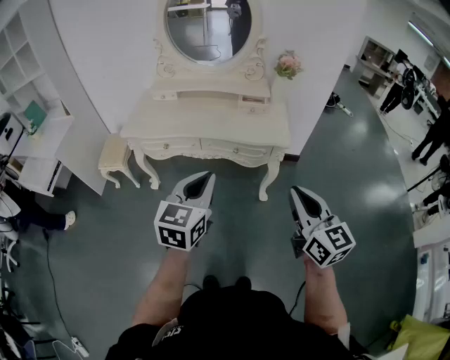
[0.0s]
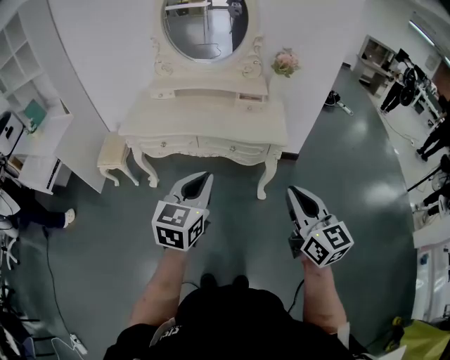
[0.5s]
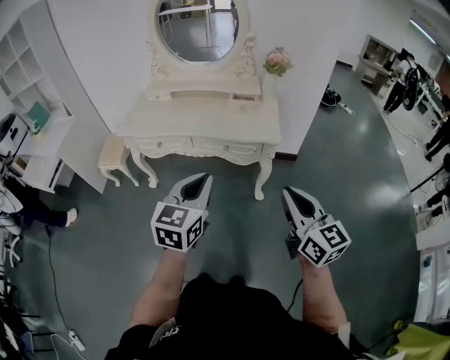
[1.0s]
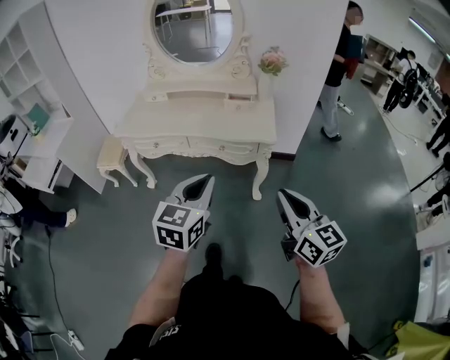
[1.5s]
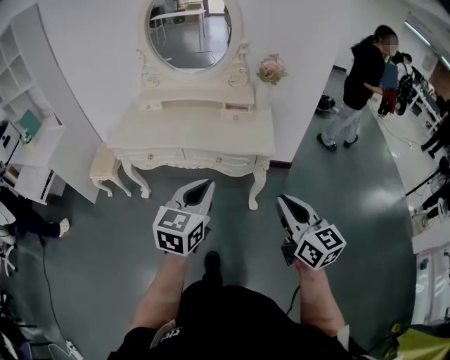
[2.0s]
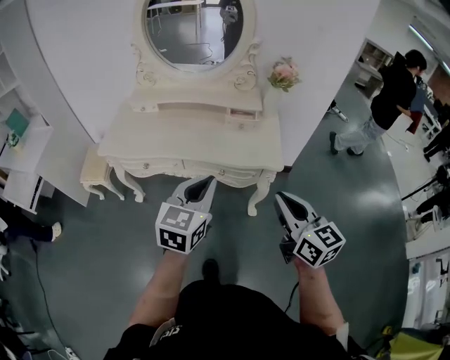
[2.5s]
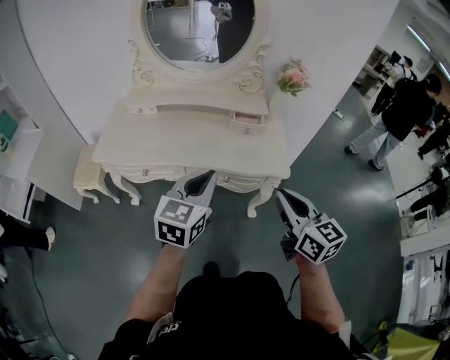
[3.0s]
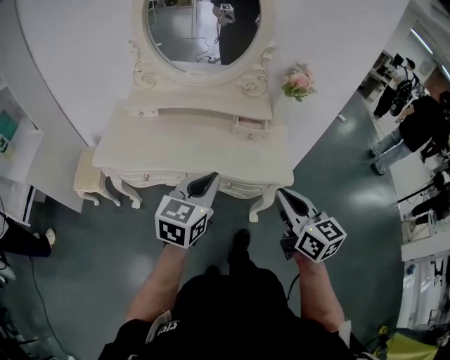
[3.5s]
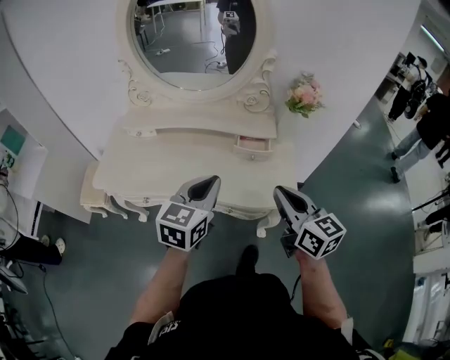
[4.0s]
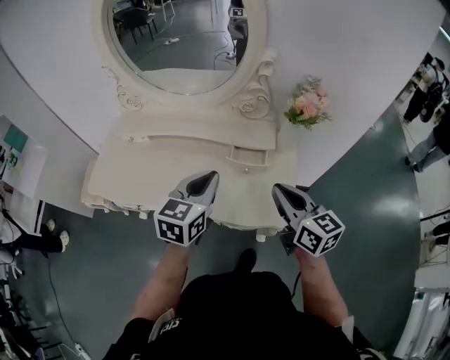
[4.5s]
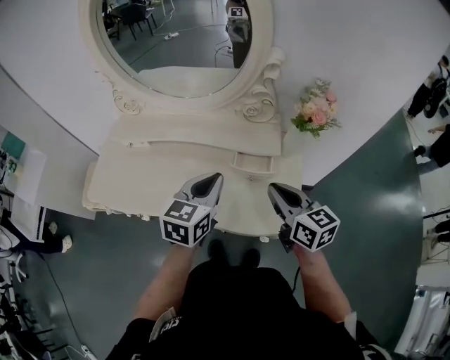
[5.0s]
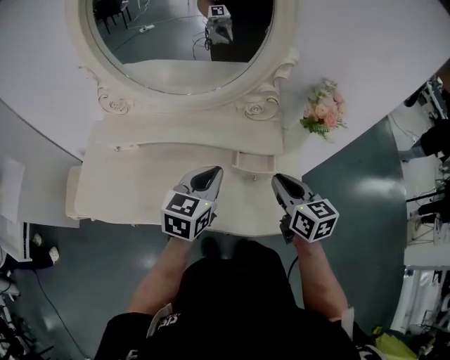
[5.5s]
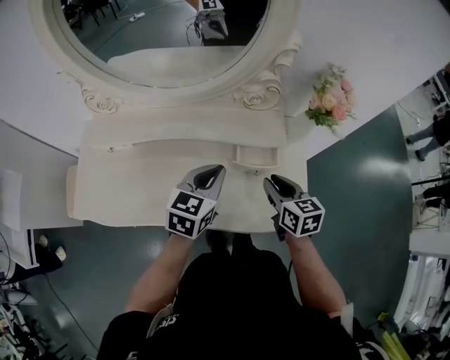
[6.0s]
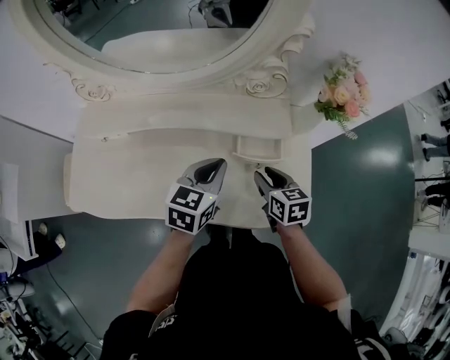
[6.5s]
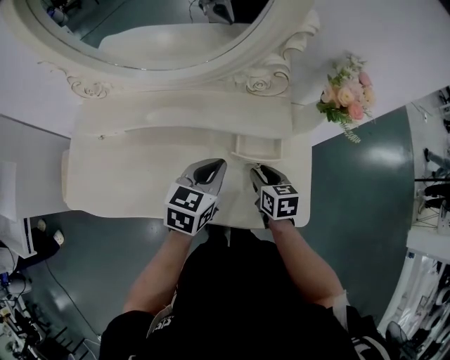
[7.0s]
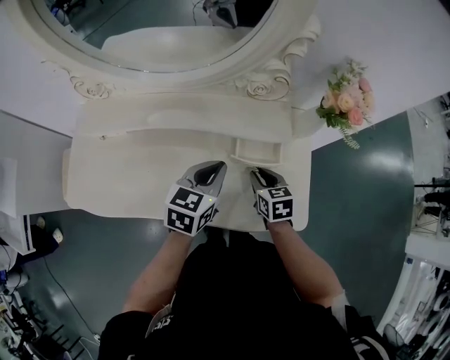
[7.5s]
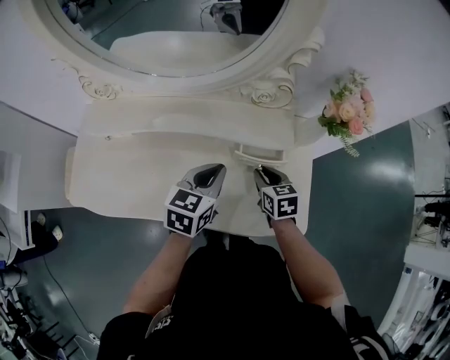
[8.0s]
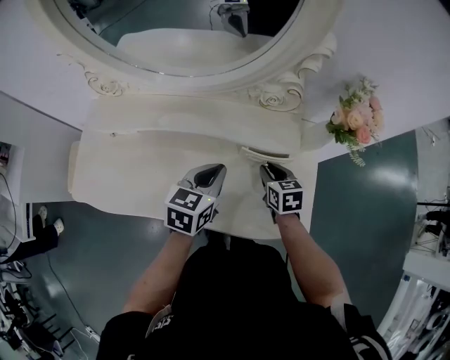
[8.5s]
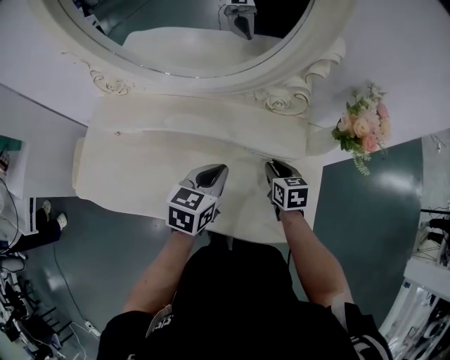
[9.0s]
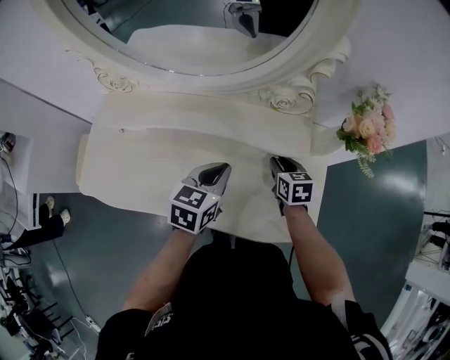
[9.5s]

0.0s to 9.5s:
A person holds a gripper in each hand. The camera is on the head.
0.0s to 2.0s: The grippers both shift to the right by approximately 10 cm.
2.0s to 4.0s: The grippers both shift forward by roughly 35 cm.
4.0s to 5.5s: Both grippers move forward, roughly 20 cm.
5.5s to 7.5s: The left gripper travels downward by roughly 10 cm; the right gripper goes about 20 cm downward, and changes its angle by some 20 degrees.
7.5s to 9.5s: The right gripper shifts roughly 10 cm forward.

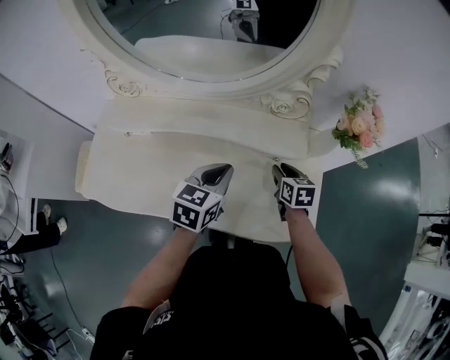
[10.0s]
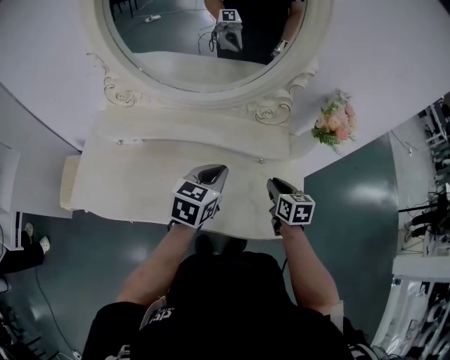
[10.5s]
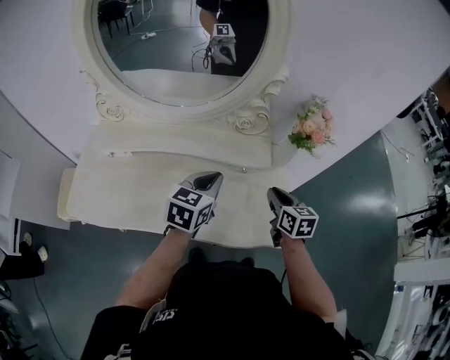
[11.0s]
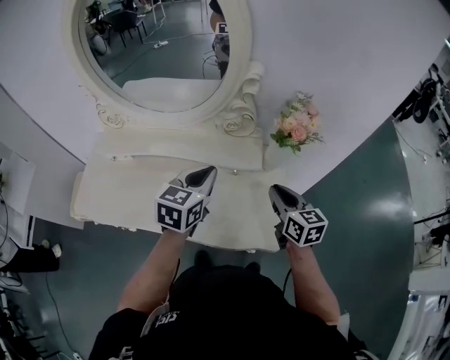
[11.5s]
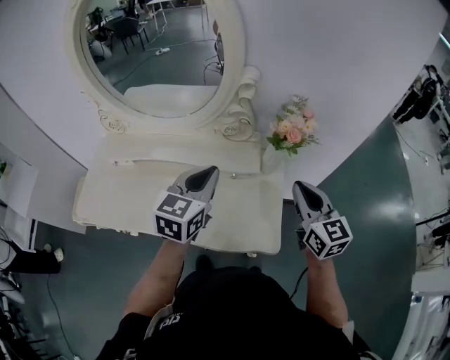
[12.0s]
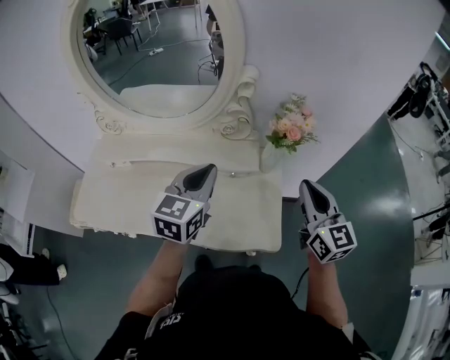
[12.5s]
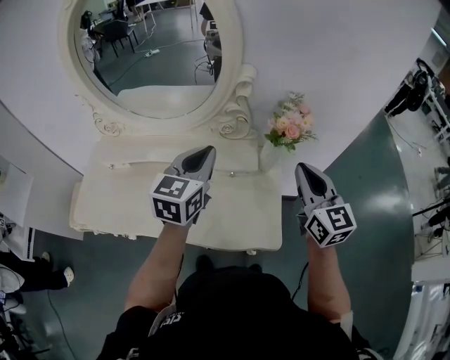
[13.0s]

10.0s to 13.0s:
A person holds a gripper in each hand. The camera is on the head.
10.0s to 11.5s: The right gripper travels upward, to the right and backward by about 20 cm, and changes its angle by some 20 degrees. Meanwhile the left gripper is displaced upward and to the right by approximately 15 cm.
11.5s to 13.0s: The right gripper heads upward, covering approximately 15 cm, and swivels about 20 degrees. Meanwhile the left gripper goes roughly 10 cm upward.

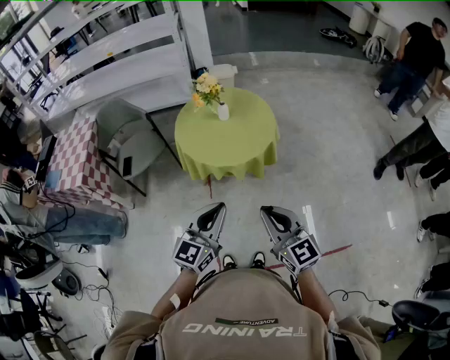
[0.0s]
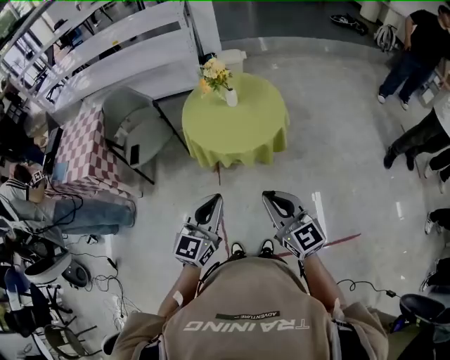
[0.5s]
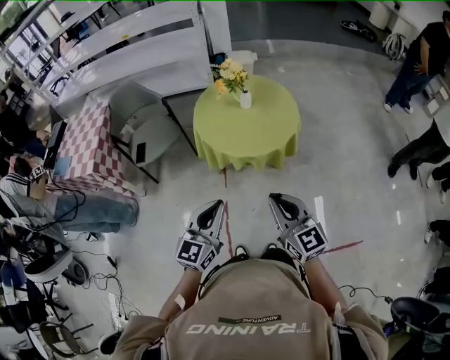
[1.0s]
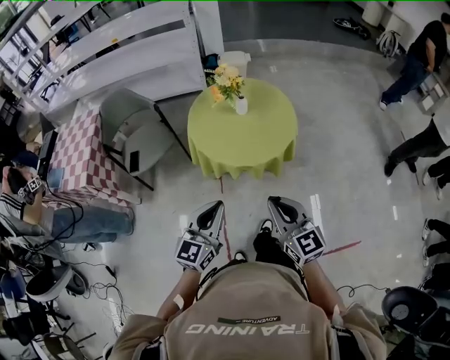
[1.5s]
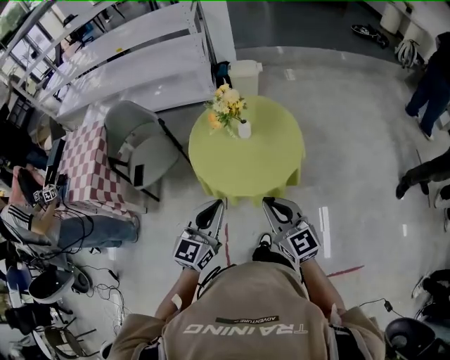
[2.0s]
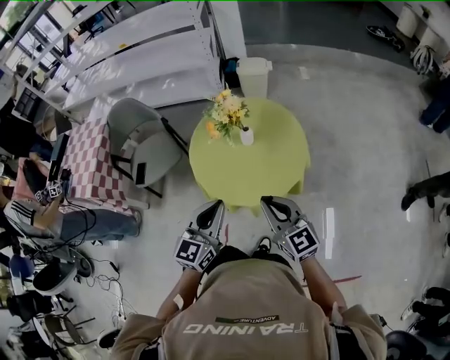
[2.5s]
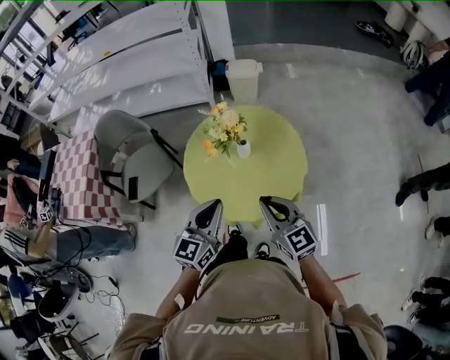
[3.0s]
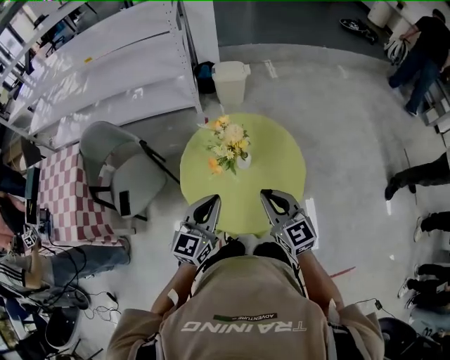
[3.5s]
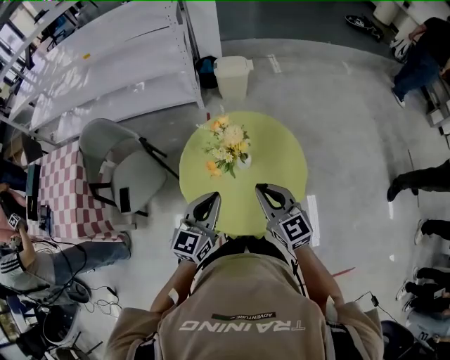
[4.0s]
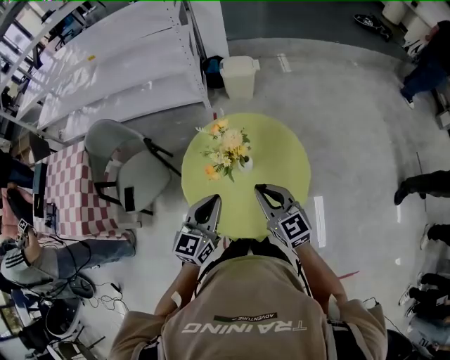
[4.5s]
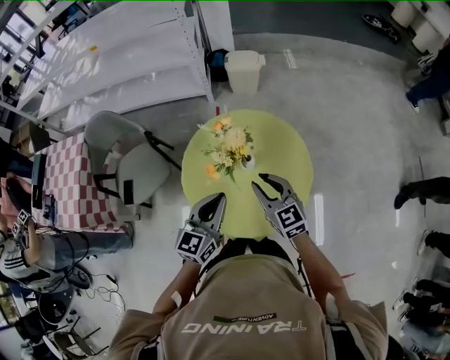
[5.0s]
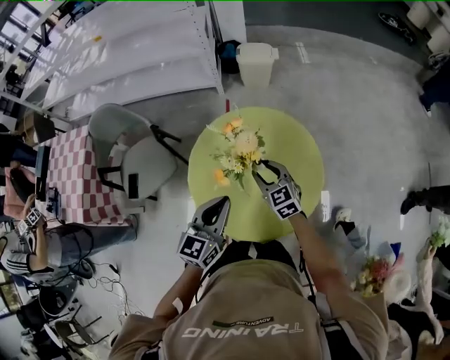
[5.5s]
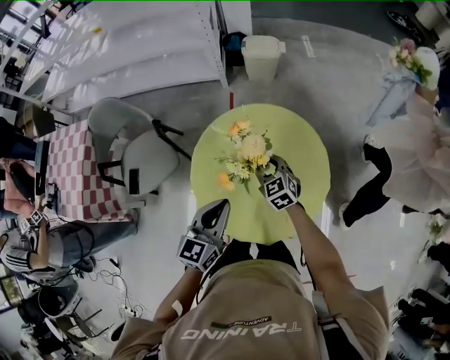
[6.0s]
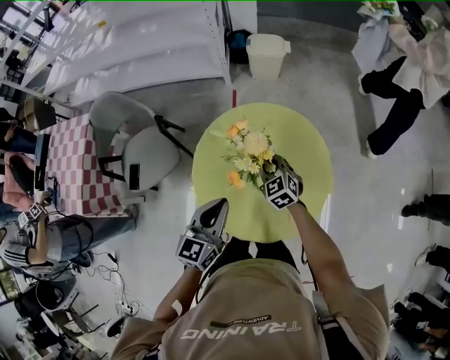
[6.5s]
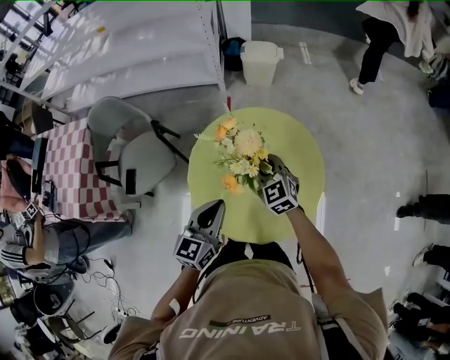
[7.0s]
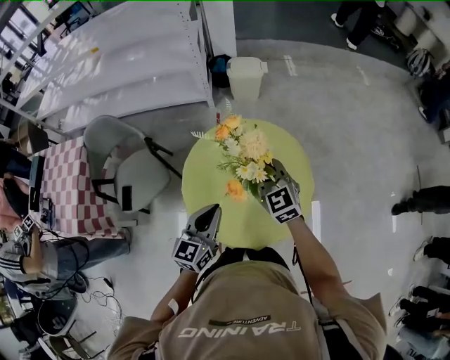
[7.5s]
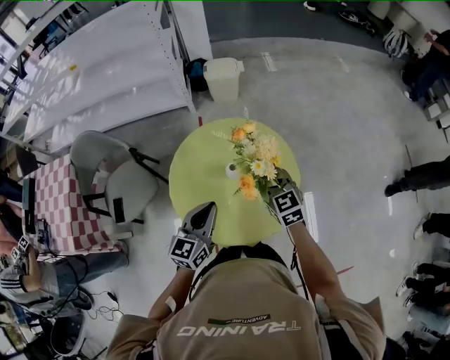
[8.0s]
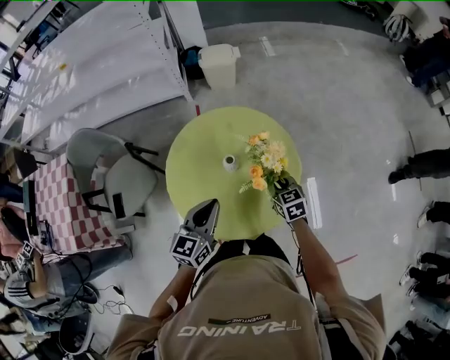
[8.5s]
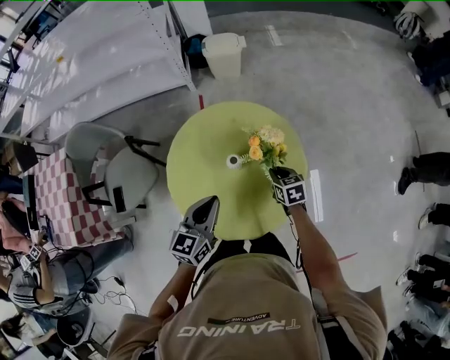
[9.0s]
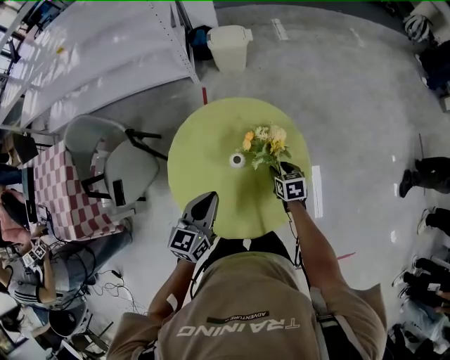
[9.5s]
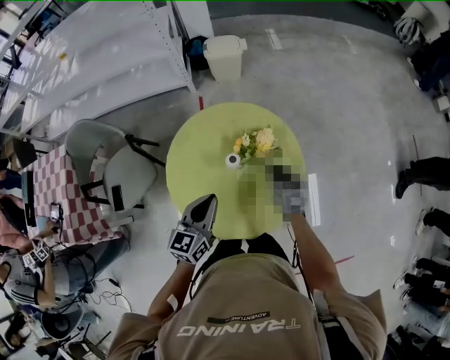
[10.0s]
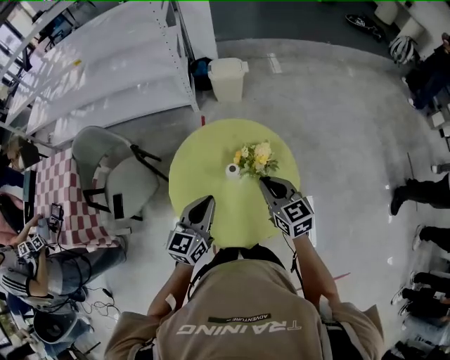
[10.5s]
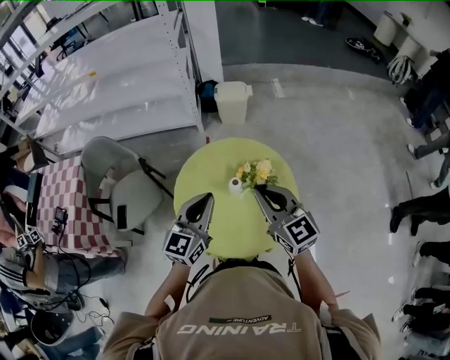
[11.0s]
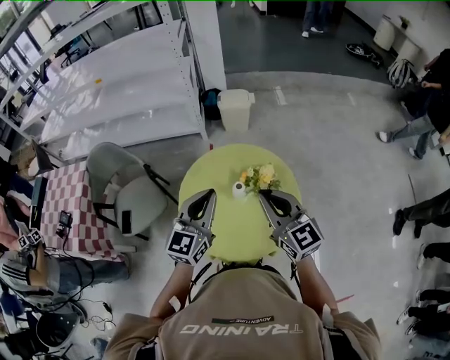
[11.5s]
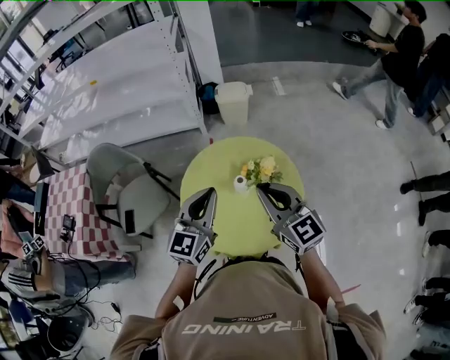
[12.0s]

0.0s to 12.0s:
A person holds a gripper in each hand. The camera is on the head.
0.0s to 2.0s: The two grippers go approximately 25 cm forward.
2.0s to 4.0s: Both grippers move forward, approximately 30 cm.
4.0s to 6.0s: The right gripper is displaced downward and forward by some 25 cm, changes its angle by approximately 30 degrees, and opens its fingers. Meanwhile the left gripper is displaced forward by approximately 5 cm.
6.0s to 8.0s: The right gripper moves upward, to the right and backward, about 15 cm, and closes up.
8.0s to 10.0s: The right gripper heads downward, covering approximately 15 cm, rotates roughly 30 degrees, and opens, then closes once more.
10.0s to 12.0s: The left gripper goes approximately 15 cm upward, and changes its angle by about 20 degrees; the right gripper heads upward, covering some 30 cm, and points its fingers roughly 40 degrees further upward.

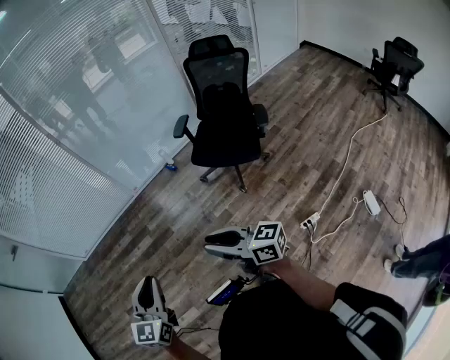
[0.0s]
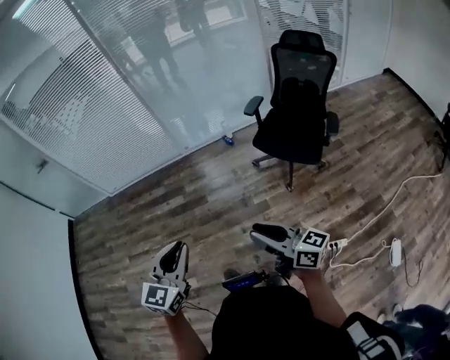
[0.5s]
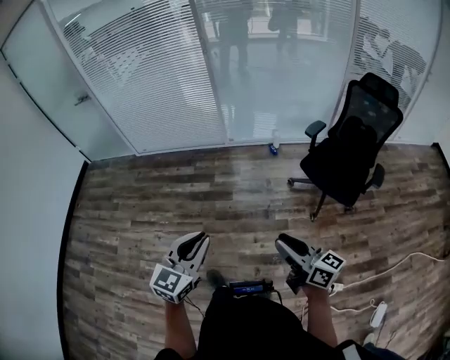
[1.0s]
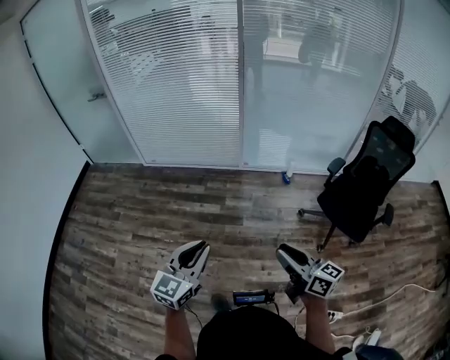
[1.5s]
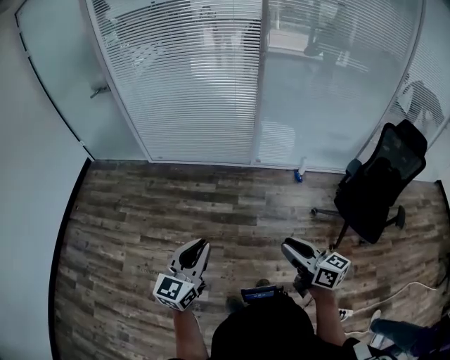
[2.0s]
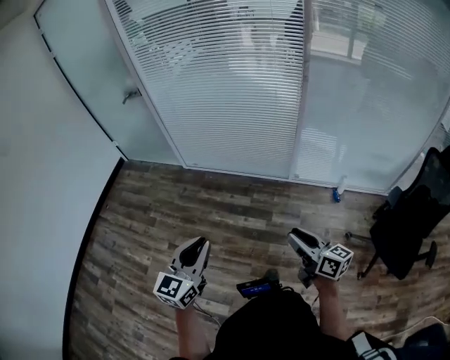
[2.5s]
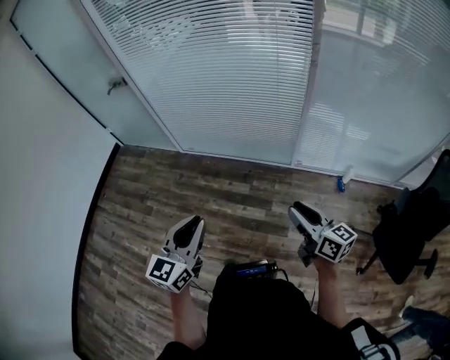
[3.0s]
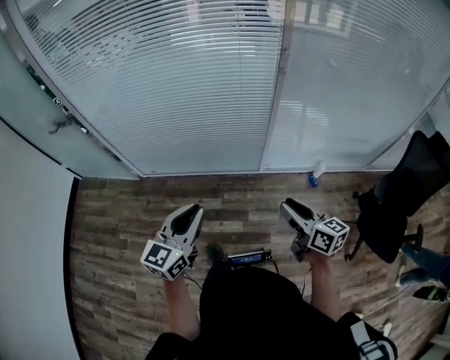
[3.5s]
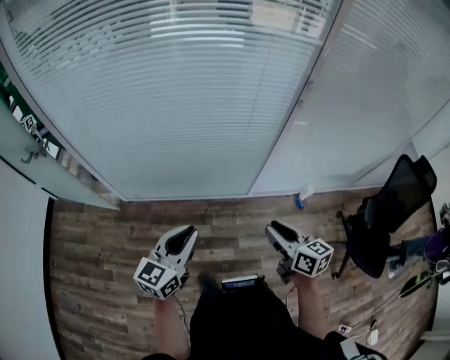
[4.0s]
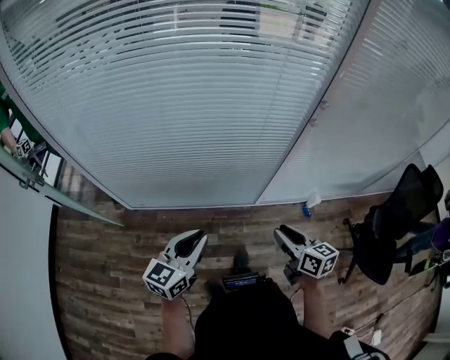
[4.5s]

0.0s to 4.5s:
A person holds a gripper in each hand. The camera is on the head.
0.0s to 2.0s: Both grippers move to the left and forward, approximately 35 cm.
2.0s to 4.5s: The pair of grippers is taken forward, some 60 cm. The right gripper turns by about 20 degrees.
